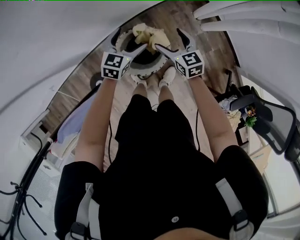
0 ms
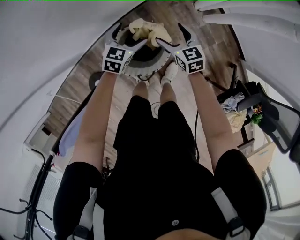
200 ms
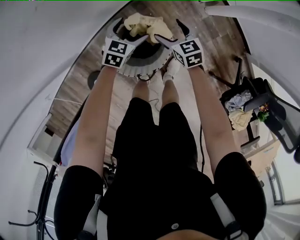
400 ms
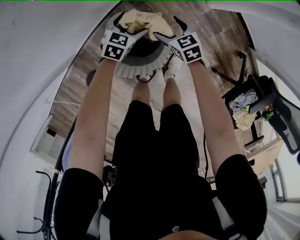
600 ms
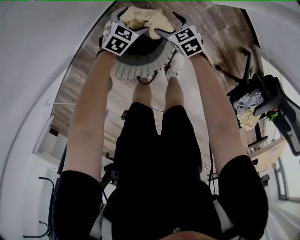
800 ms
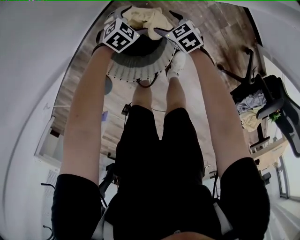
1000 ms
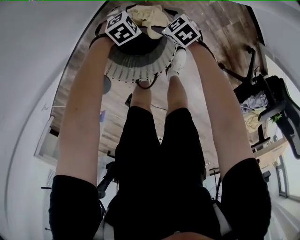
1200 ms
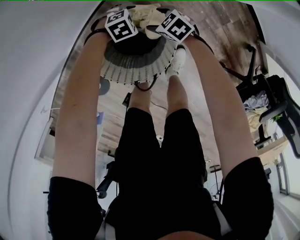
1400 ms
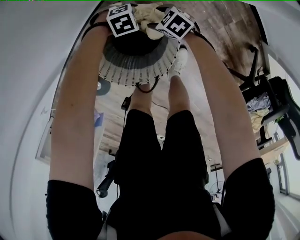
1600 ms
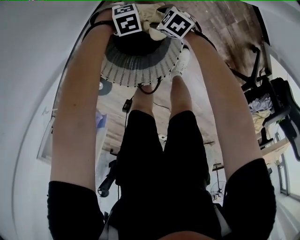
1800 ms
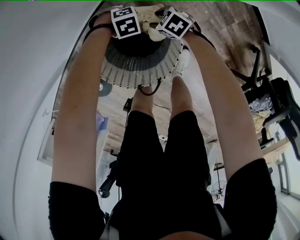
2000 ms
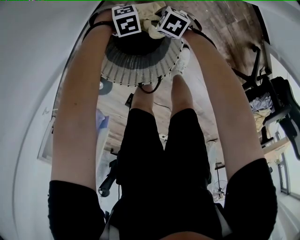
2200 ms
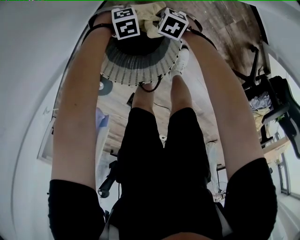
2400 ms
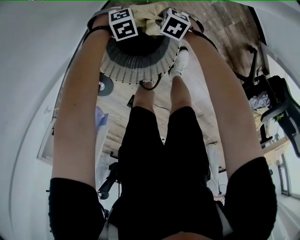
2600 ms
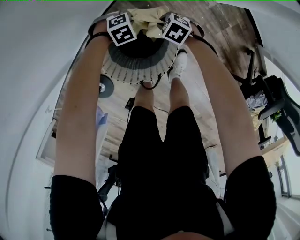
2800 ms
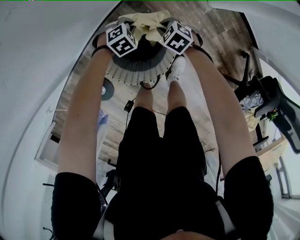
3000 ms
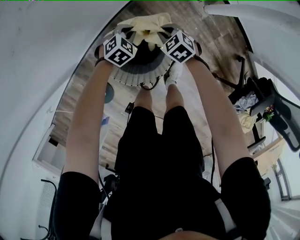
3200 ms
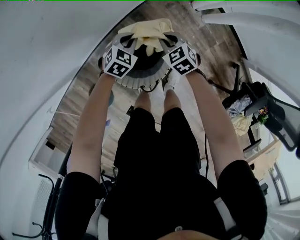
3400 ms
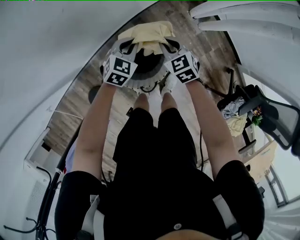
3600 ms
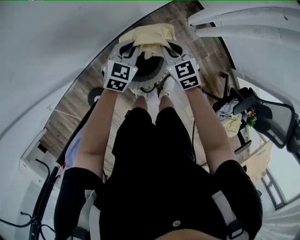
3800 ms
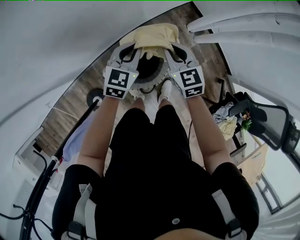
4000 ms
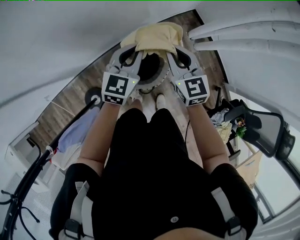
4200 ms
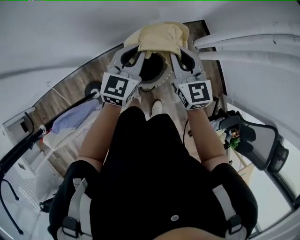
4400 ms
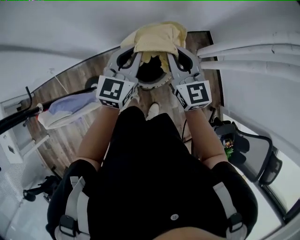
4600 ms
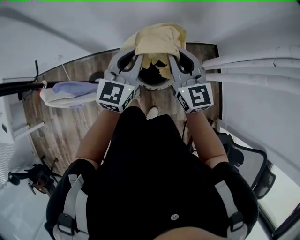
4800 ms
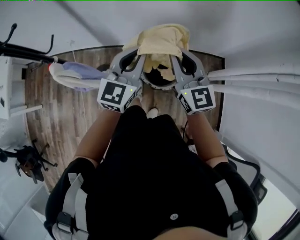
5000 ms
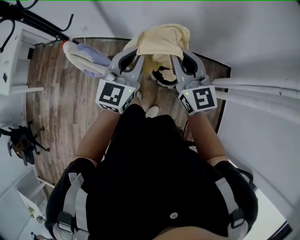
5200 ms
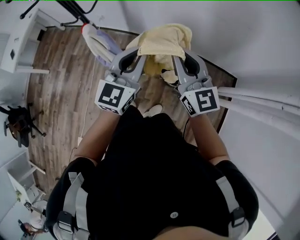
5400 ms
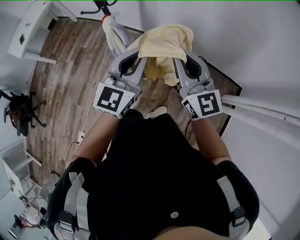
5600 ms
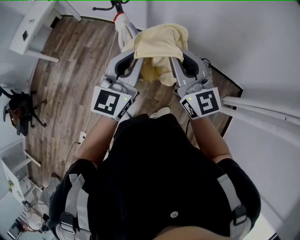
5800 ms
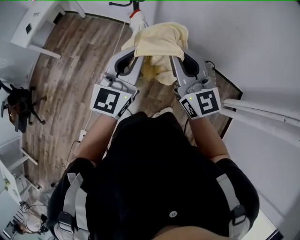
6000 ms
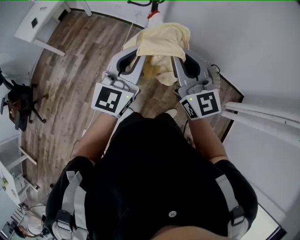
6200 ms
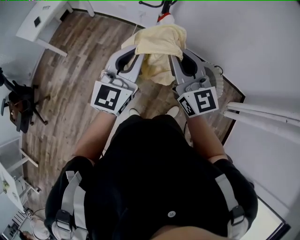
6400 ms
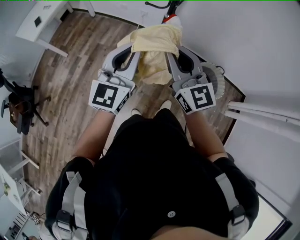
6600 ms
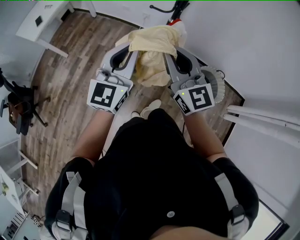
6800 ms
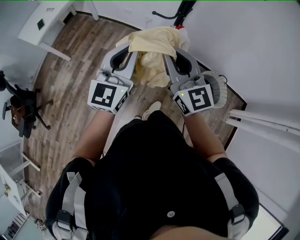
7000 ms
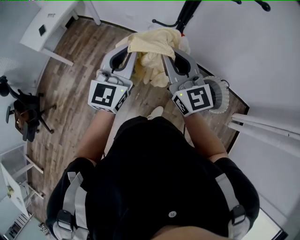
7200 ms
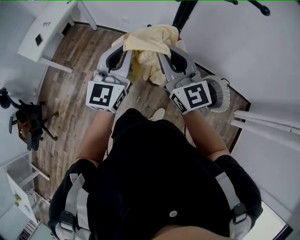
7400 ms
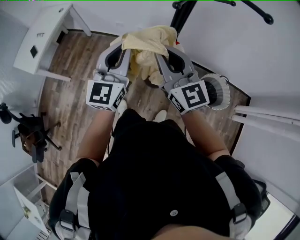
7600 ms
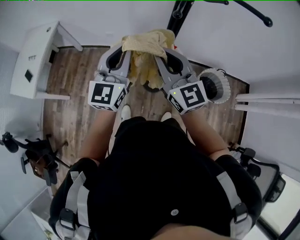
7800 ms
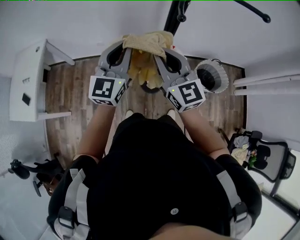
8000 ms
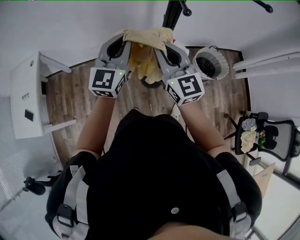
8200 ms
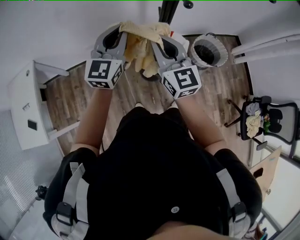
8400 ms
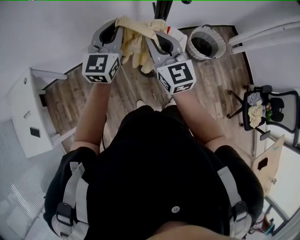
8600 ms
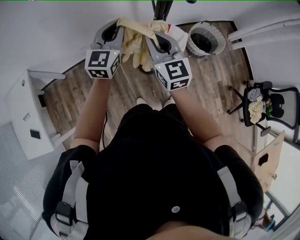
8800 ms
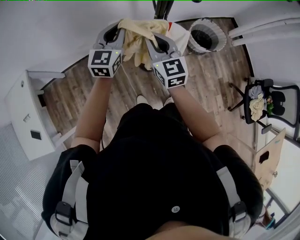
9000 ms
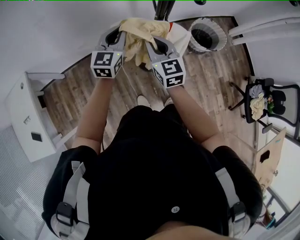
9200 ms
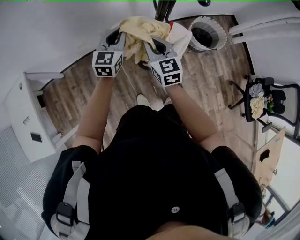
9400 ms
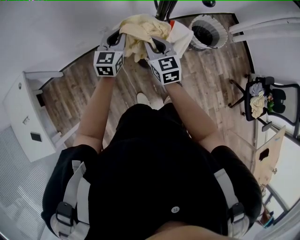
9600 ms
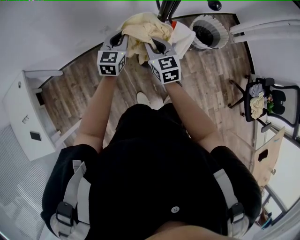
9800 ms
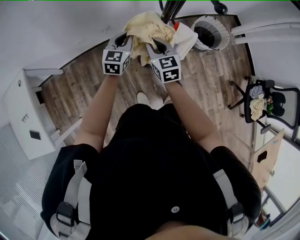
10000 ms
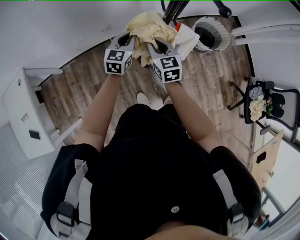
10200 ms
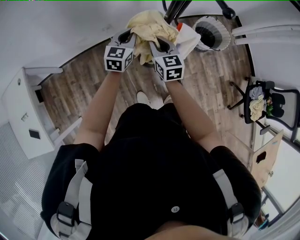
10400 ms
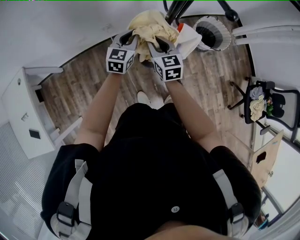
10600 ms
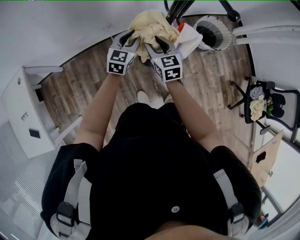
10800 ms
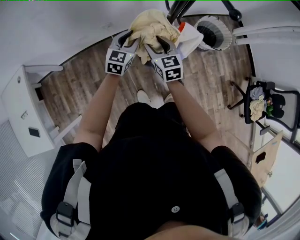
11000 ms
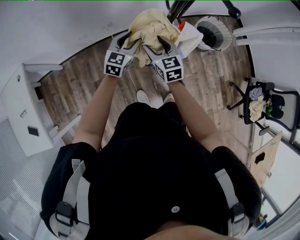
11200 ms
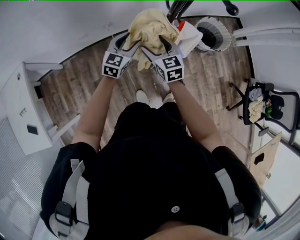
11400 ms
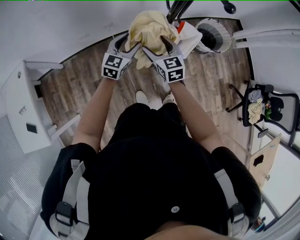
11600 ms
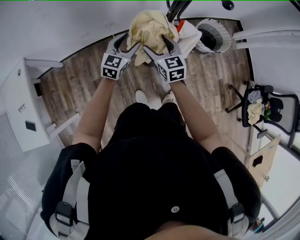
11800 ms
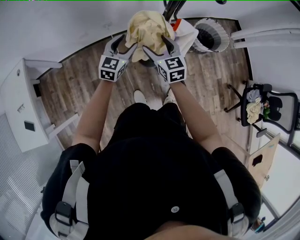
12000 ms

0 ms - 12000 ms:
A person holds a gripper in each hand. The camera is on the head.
0 ms - 1600 ms: The two grippers go some 50 cm downward. The left gripper tilts its fingers about 40 degrees downward, while the right gripper turns by about 40 degrees.
1600 ms - 3000 ms: Both grippers travel together upward, some 10 cm. The right gripper closes its fingers. The left gripper swivels approximately 20 degrees, and closes its fingers.
3000 ms - 4400 ms: Both grippers travel together upward, some 60 cm. The right gripper angles its fingers upward, by about 50 degrees. Meanwhile the left gripper points its fingers some 60 degrees further upward.
4400 ms - 6000 ms: The two grippers travel together, some 60 cm. The right gripper changes its angle by about 60 degrees, while the left gripper swivels approximately 50 degrees.
6000 ms - 7600 ms: The grippers both shift to the left and forward by approximately 30 cm.
7600 ms - 9000 ms: The right gripper ends up approximately 20 cm from where it was, and turns by some 50 degrees. The left gripper shifts by roughly 25 cm, and changes its angle by about 40 degrees.
9000 ms - 10400 ms: The grippers both shift downward by about 15 cm.
10400 ms - 12000 ms: The left gripper moves backward, about 5 cm, and opens up; the right gripper opens up.

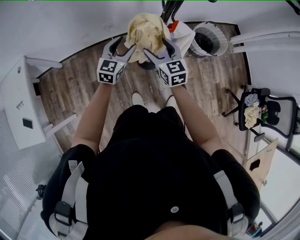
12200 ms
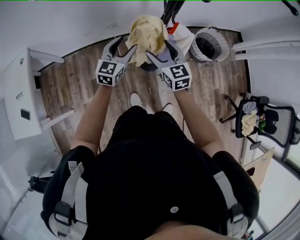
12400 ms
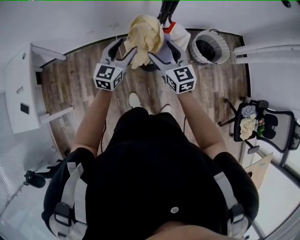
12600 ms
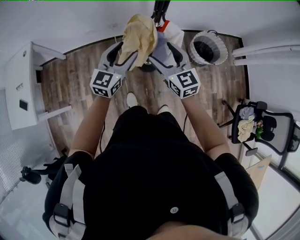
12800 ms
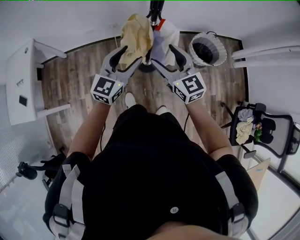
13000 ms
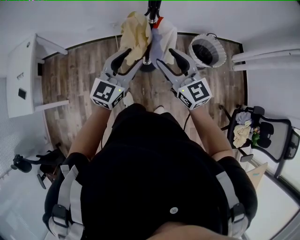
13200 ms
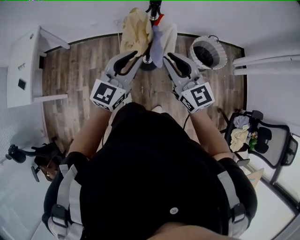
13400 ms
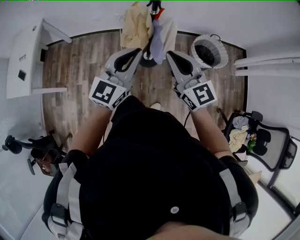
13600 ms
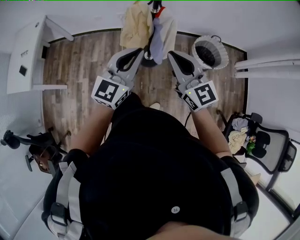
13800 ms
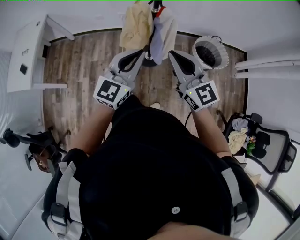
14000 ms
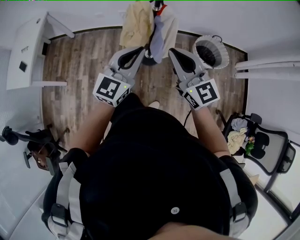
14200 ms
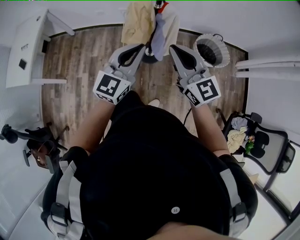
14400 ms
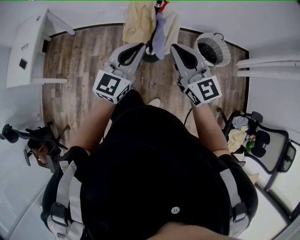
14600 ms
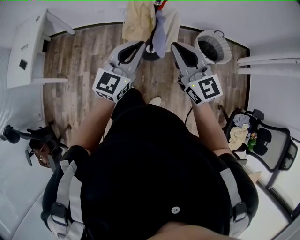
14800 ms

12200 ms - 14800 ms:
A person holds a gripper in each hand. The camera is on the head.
12200 ms - 13400 ms: Both grippers travel together backward, upward and to the right, approximately 30 cm. The left gripper closes its fingers. Meanwhile the right gripper rotates roughly 30 degrees, and closes up.
13400 ms - 14800 ms: The right gripper ends up some 5 cm from where it was. The left gripper heads backward, covering about 5 cm.

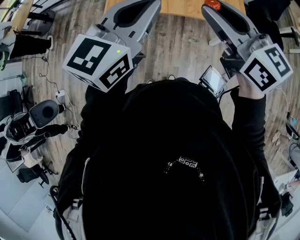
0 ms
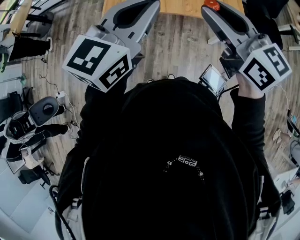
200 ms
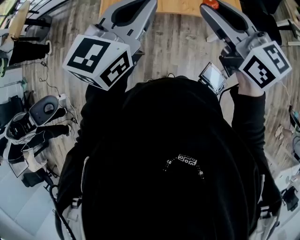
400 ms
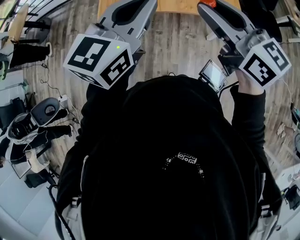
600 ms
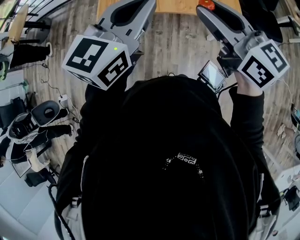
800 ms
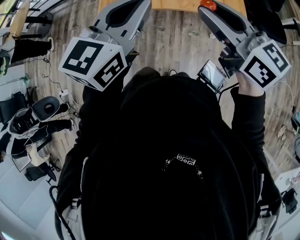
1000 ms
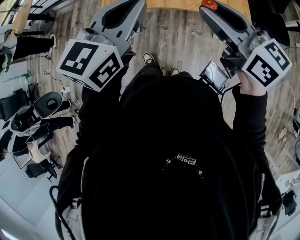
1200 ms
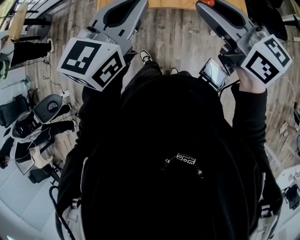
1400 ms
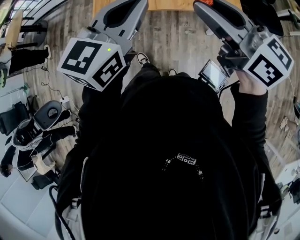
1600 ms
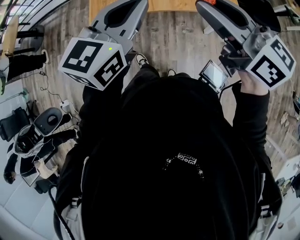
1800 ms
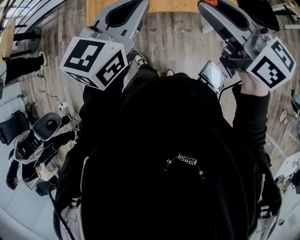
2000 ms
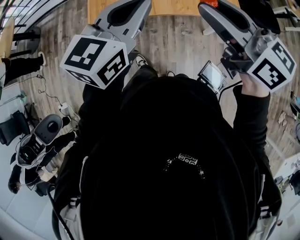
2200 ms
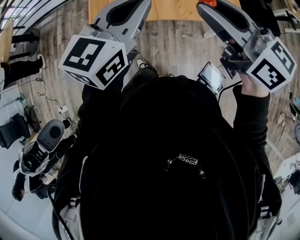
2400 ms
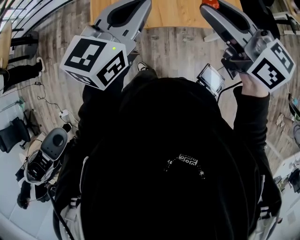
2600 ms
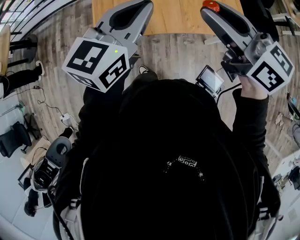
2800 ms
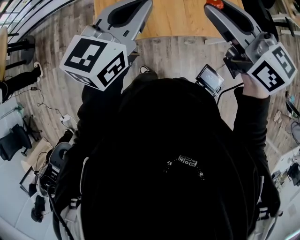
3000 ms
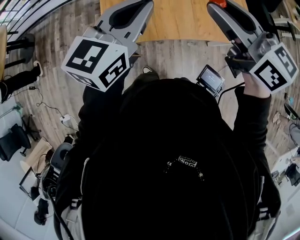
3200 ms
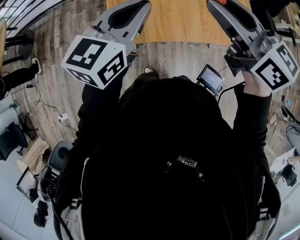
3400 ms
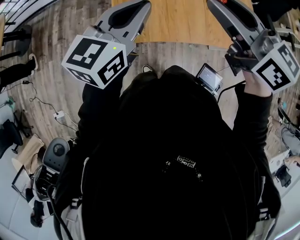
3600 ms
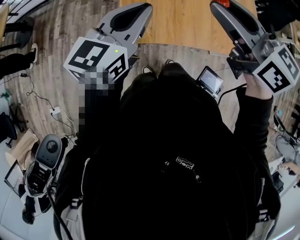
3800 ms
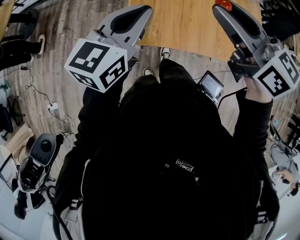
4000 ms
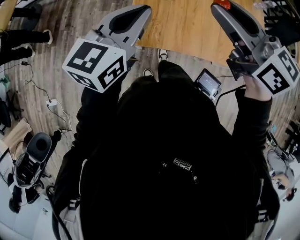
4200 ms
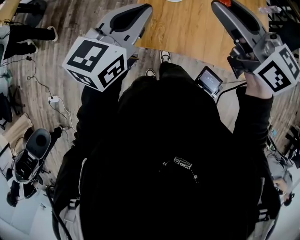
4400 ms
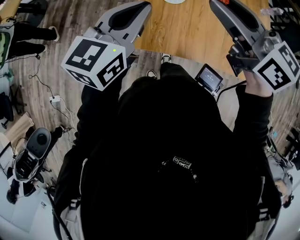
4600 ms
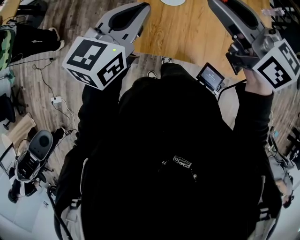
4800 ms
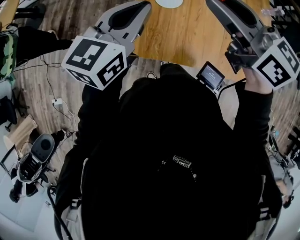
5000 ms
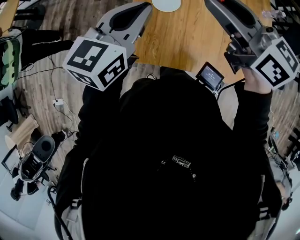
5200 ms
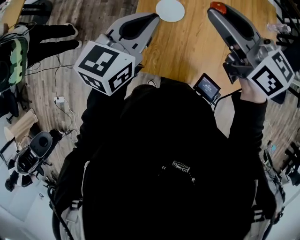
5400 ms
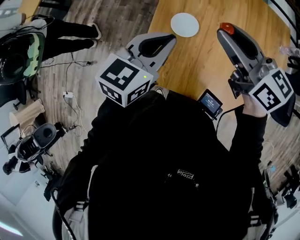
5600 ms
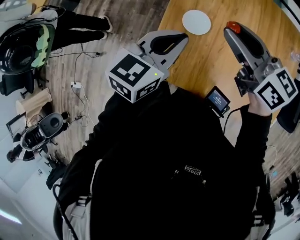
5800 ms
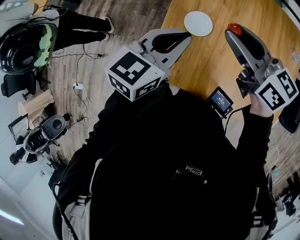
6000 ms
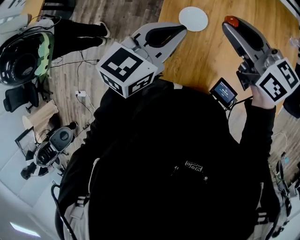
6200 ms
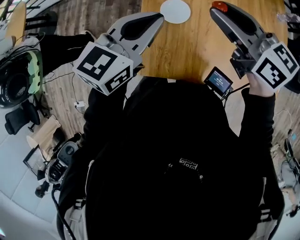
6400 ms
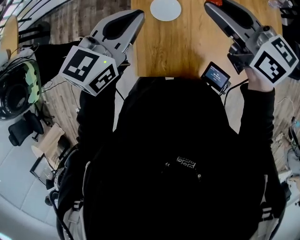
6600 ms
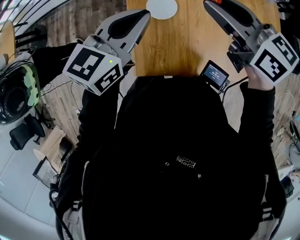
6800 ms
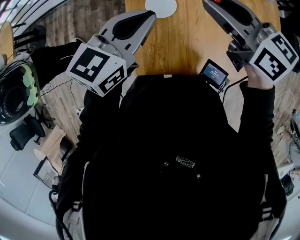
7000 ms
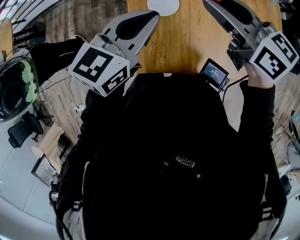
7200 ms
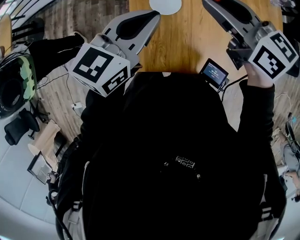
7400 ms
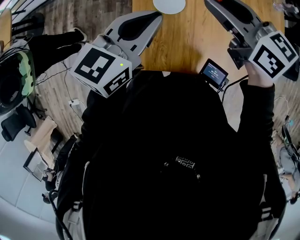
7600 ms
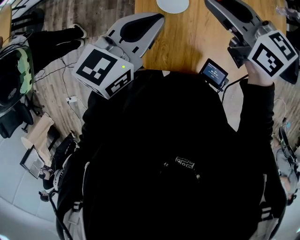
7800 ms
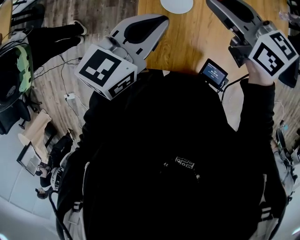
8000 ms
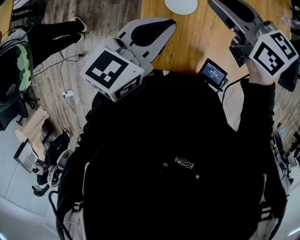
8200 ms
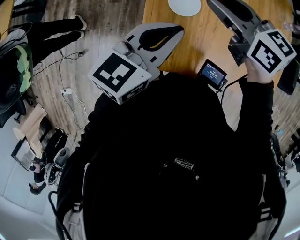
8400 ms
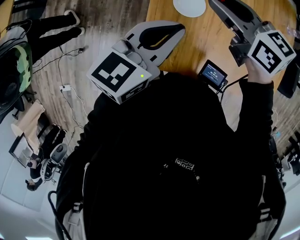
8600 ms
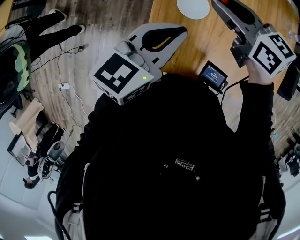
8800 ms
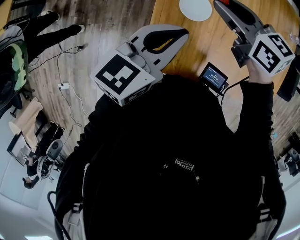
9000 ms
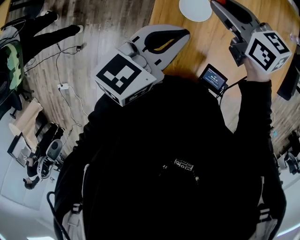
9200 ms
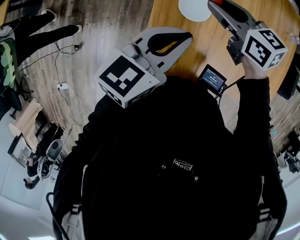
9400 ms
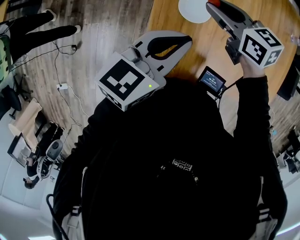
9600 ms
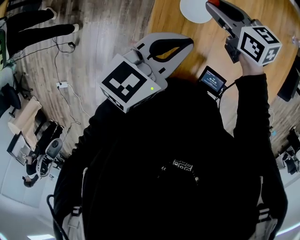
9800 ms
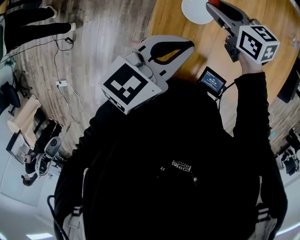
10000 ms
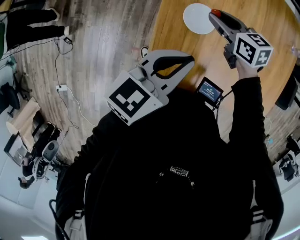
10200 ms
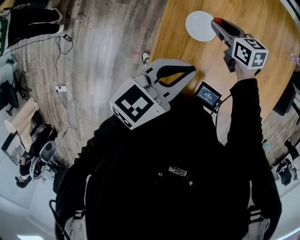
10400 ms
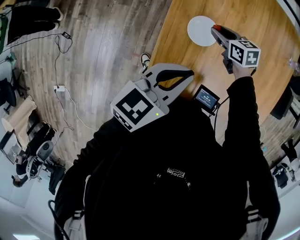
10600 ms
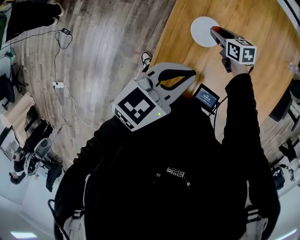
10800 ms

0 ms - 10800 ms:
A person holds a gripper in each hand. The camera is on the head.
0 ms - 1600 ms: The grippers move only a little.
1600 ms - 3000 ms: The two grippers go approximately 20 cm forward and to the left.
3000 ms - 4600 ms: The grippers both shift to the left and forward by roughly 20 cm.
4600 ms - 6200 ms: Both grippers move to the right, roughly 5 cm.
6200 ms - 7800 ms: The grippers move only a little.
7800 ms - 9200 ms: The right gripper heads downward, covering some 5 cm.
9200 ms - 10800 ms: The right gripper travels downward by roughly 20 cm, and changes its angle by some 20 degrees.
